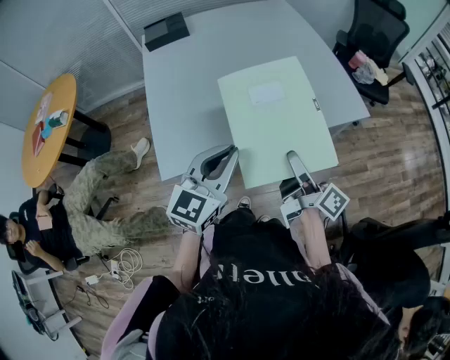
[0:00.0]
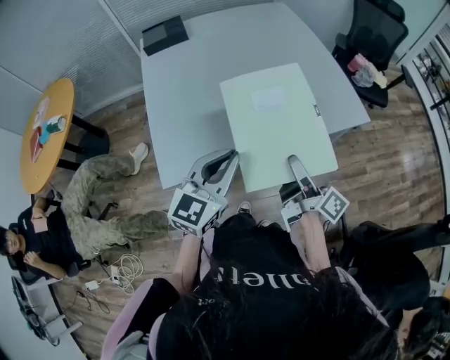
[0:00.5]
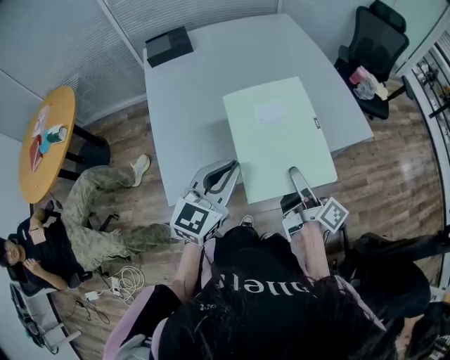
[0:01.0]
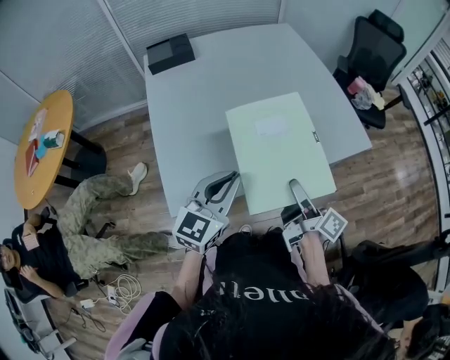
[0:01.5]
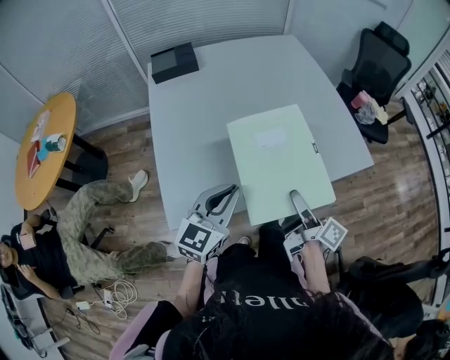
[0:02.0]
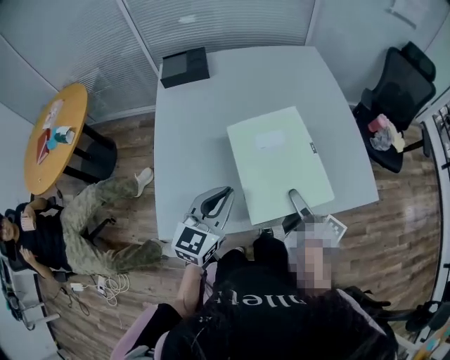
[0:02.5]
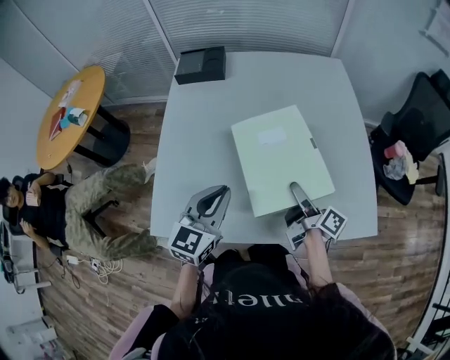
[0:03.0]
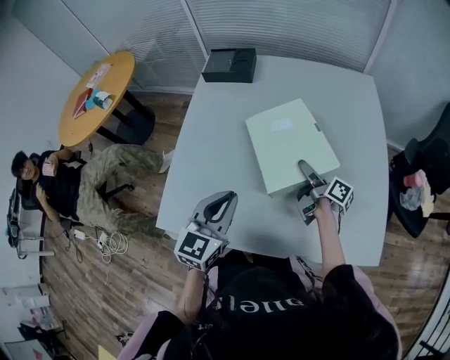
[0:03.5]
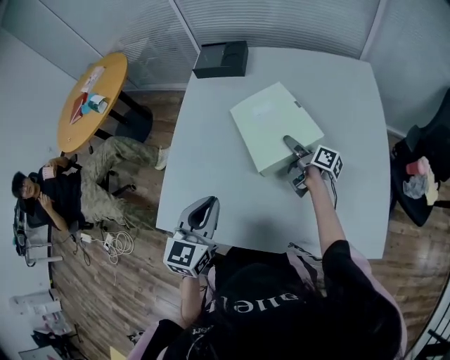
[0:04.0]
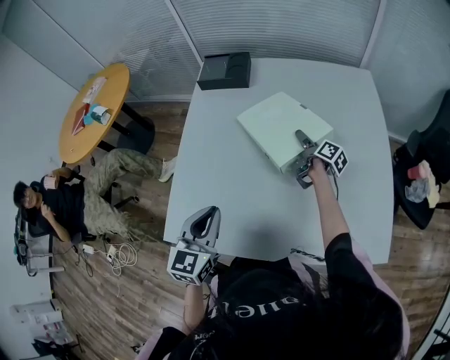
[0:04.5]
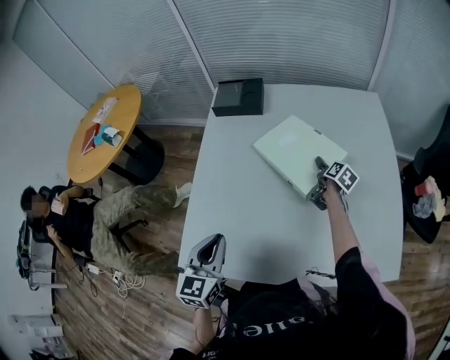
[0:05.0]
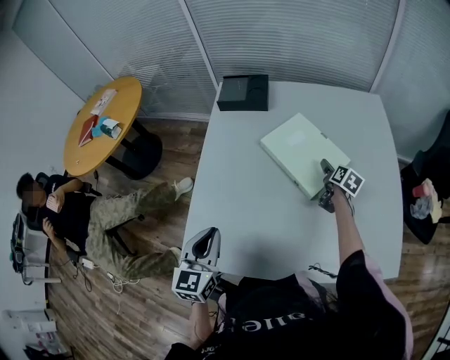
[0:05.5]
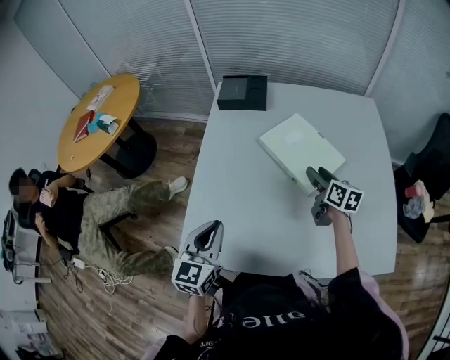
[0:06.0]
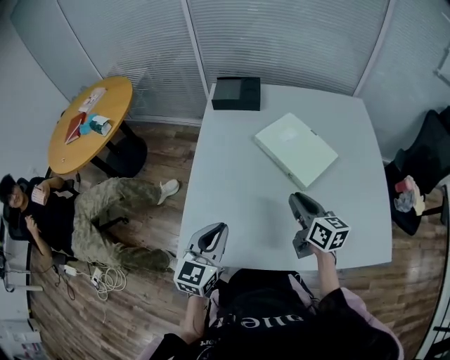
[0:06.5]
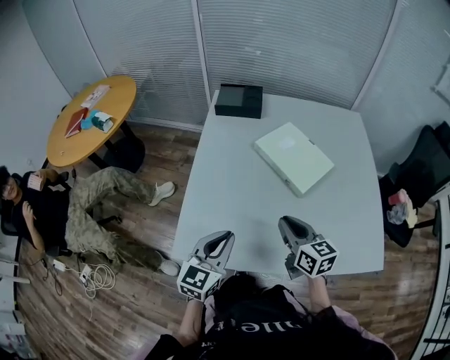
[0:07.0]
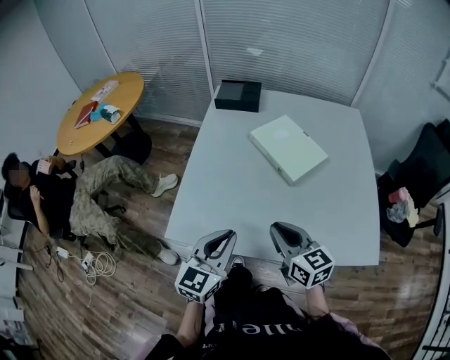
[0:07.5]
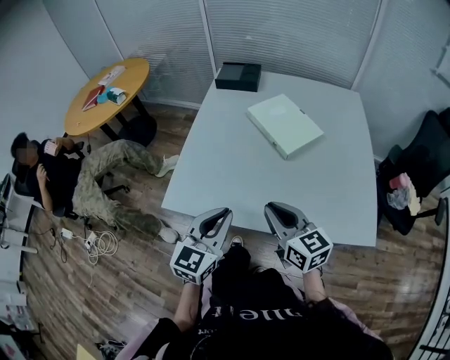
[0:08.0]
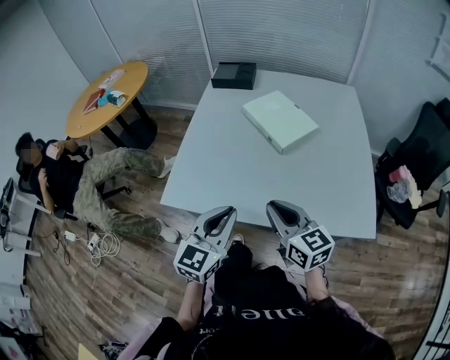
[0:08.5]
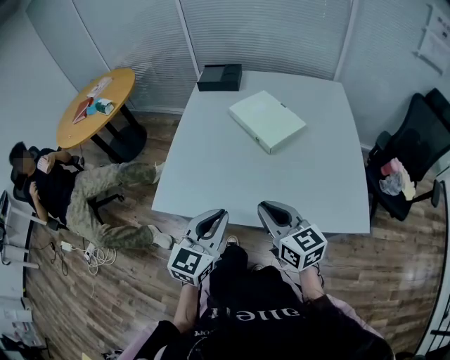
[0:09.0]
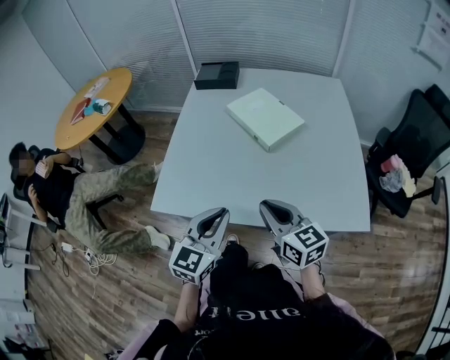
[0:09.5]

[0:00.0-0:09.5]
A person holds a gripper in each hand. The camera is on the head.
0:00.0 to 0:02.0: The right gripper moves forward, some 5 cm. Meanwhile the left gripper heads forward and to the left, covering about 10 cm.
0:02.0 to 0:04.0: The right gripper ends up approximately 40 cm from where it was, and changes its angle by about 30 degrees; the left gripper moves approximately 15 cm, and turns by approximately 40 degrees.
0:04.0 to 0:05.5: The right gripper goes about 10 cm to the right and forward, and swivels some 50 degrees; the left gripper shifts about 10 cm to the left.
0:05.5 to 0:07.5: The left gripper is displaced backward and to the right by about 15 cm, while the right gripper travels backward, to the left and upward by approximately 40 cm, changes its angle by approximately 50 degrees, and closes up.
0:07.5 to 0:09.5: The left gripper heads to the right and backward, covering approximately 10 cm; the right gripper travels backward and to the right by about 10 cm.

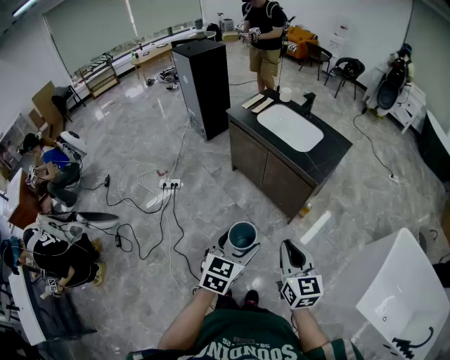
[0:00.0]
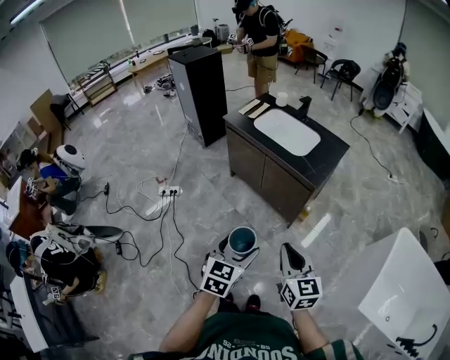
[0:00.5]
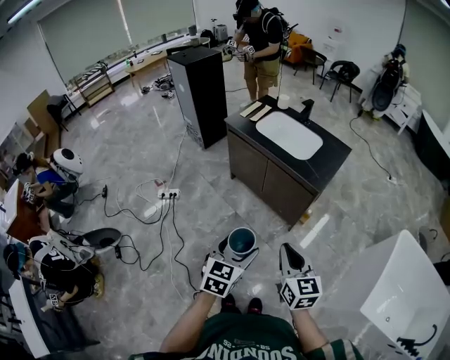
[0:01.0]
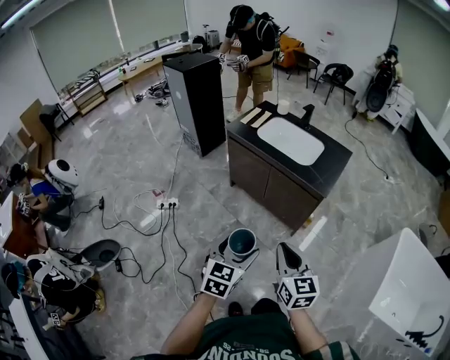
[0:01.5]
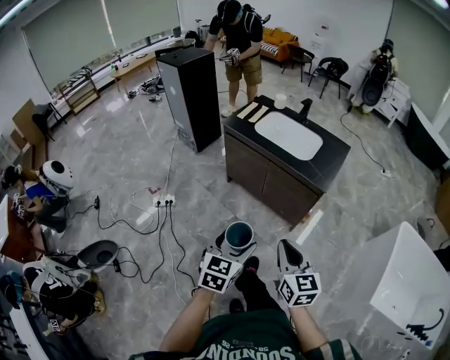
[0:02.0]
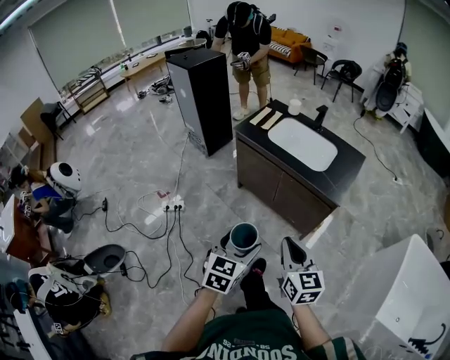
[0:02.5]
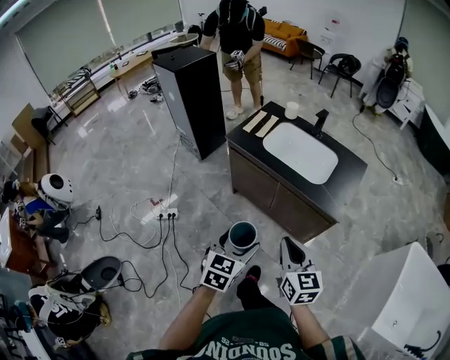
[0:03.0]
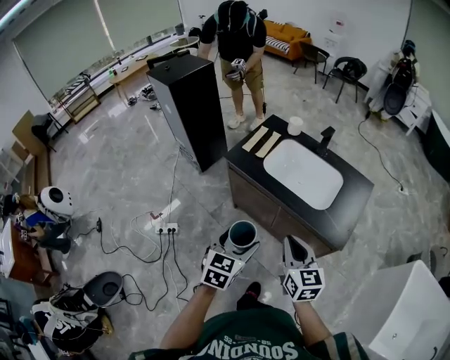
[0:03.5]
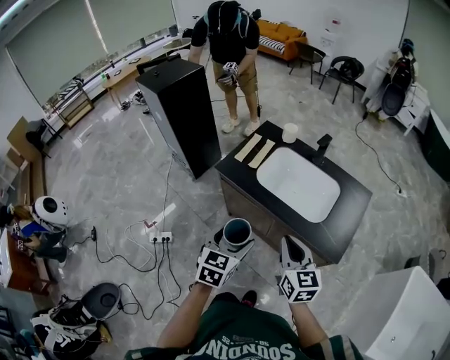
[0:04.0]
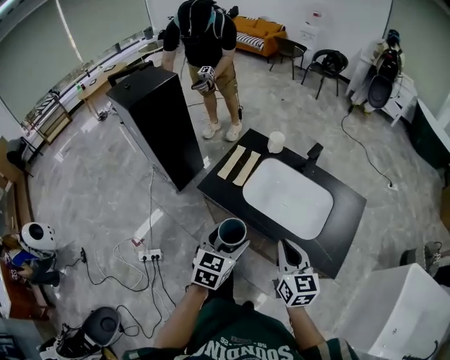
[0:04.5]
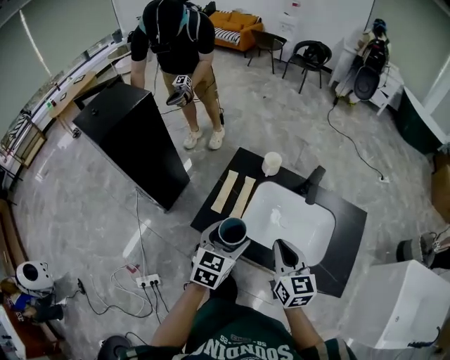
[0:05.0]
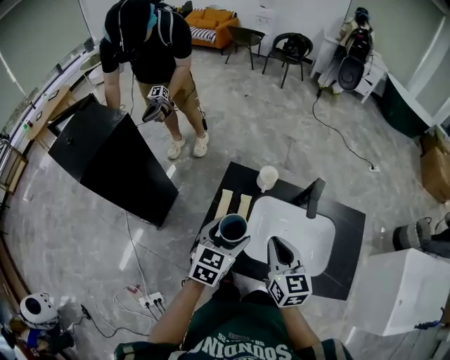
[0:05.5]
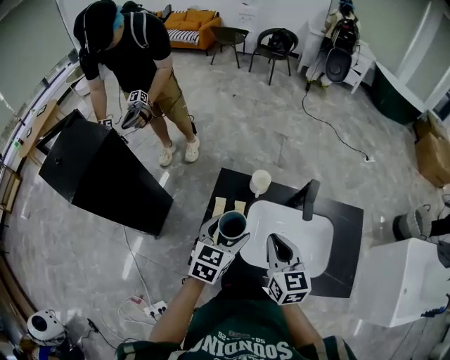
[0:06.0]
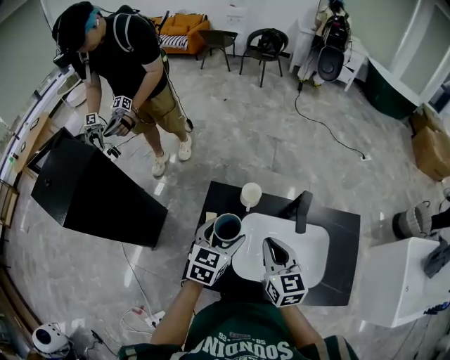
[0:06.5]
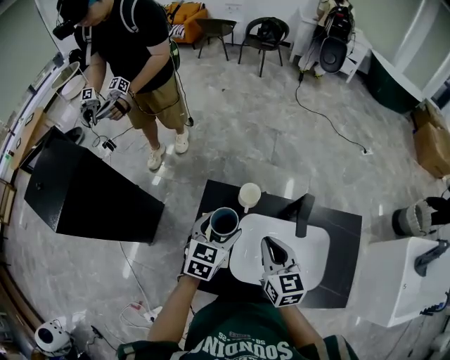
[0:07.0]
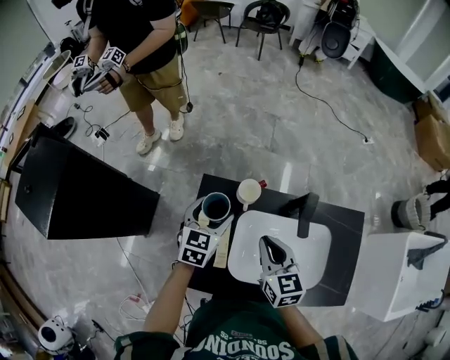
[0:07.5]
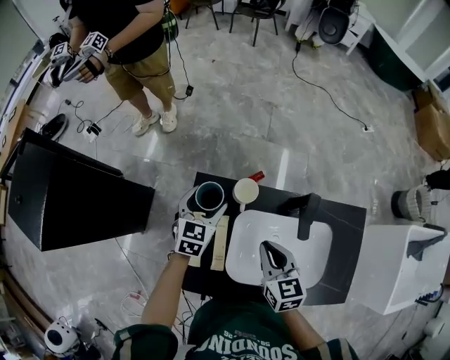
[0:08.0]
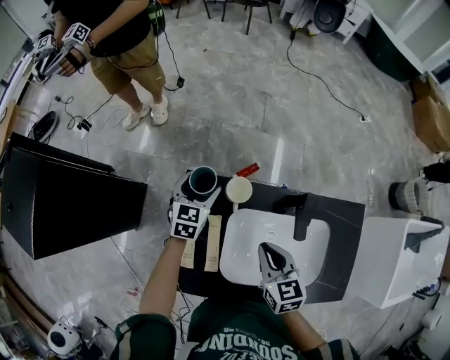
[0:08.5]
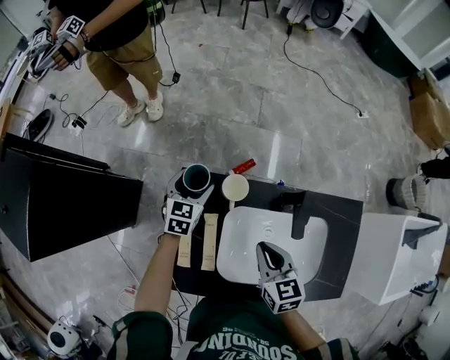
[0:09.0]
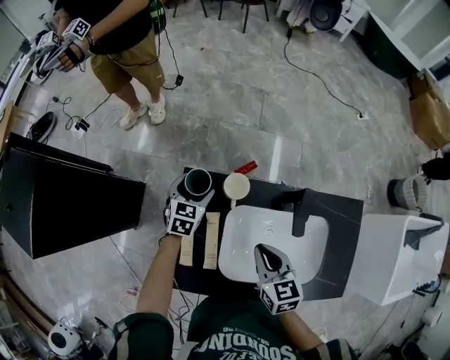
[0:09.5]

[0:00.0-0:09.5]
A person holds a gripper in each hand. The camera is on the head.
0:00.0 to 0:02.0: Both grippers move to the left and forward, about 10 cm.
0:02.0 to 0:04.0: Both grippers are carried forward, approximately 40 cm.
0:04.0 to 0:05.5: The two grippers travel together, forward, some 40 cm. The left gripper rotates roughly 20 degrees.
0:05.5 to 0:07.5: The left gripper moves forward, some 20 cm, while the right gripper moves forward and downward, some 15 cm.
0:07.5 to 0:09.5: The right gripper travels downward by some 5 cm, while the left gripper heads downward and forward, covering roughly 15 cm.

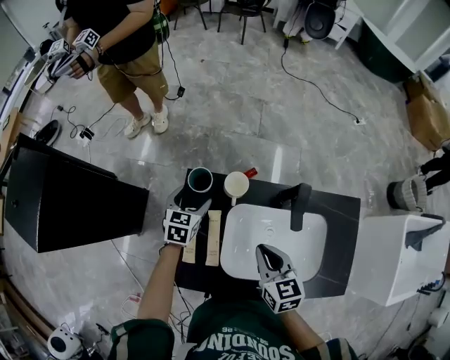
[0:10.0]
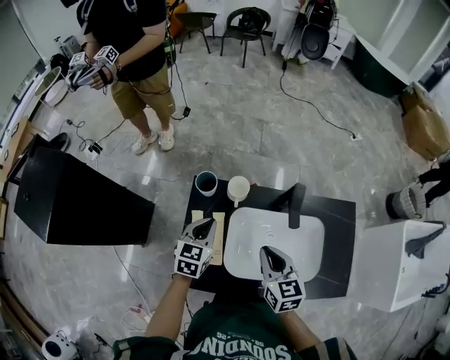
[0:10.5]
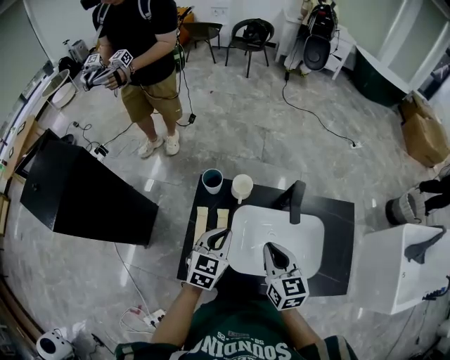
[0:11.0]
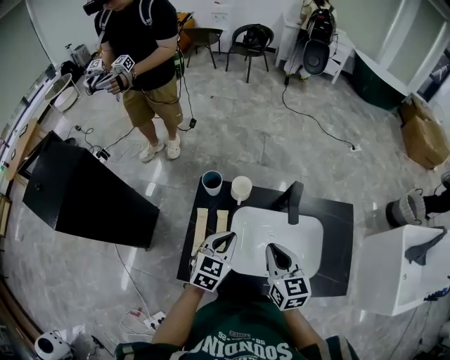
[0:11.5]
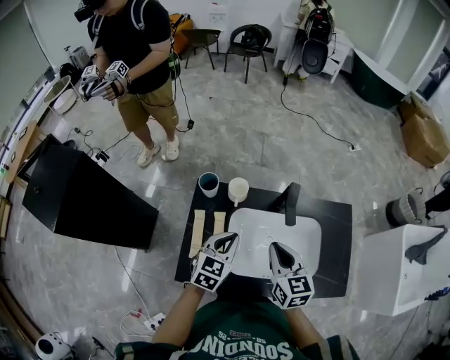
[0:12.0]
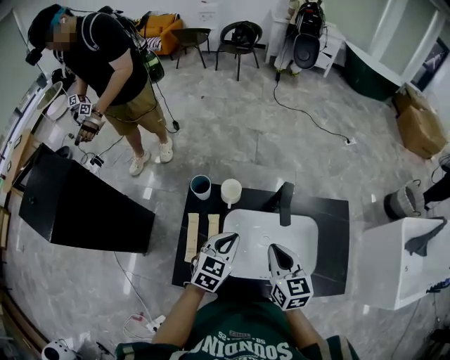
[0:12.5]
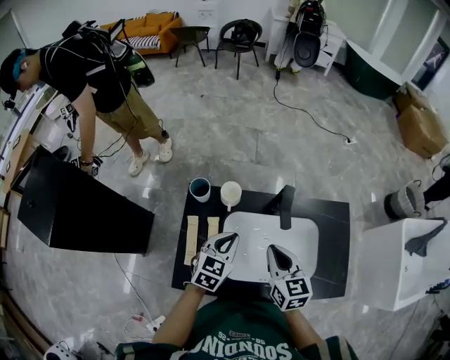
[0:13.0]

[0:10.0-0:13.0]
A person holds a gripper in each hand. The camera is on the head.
0:10.0 to 0:11.5: The left gripper heads backward, upward and to the right, covering approximately 25 cm, and closes up. The right gripper goes some 10 cm upward and backward.
0:11.5 to 0:13.0: The left gripper changes place by about 5 cm.

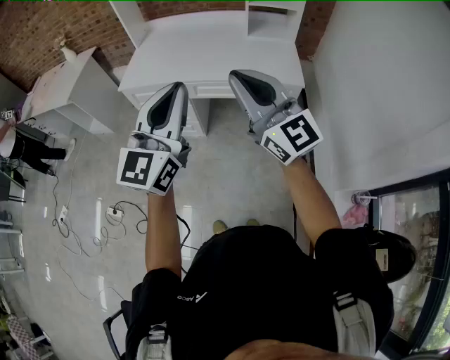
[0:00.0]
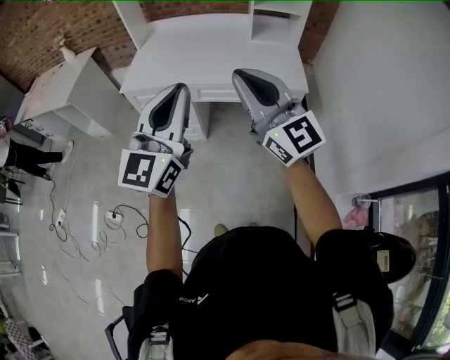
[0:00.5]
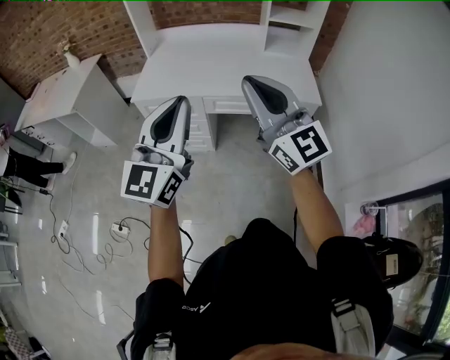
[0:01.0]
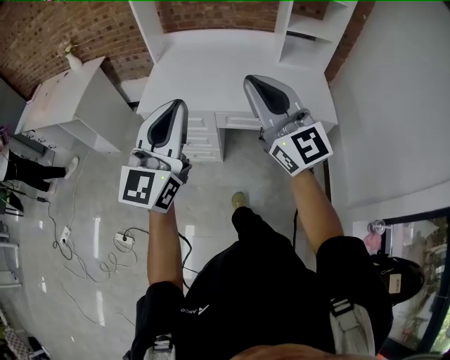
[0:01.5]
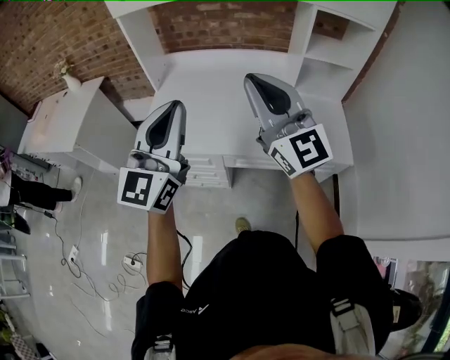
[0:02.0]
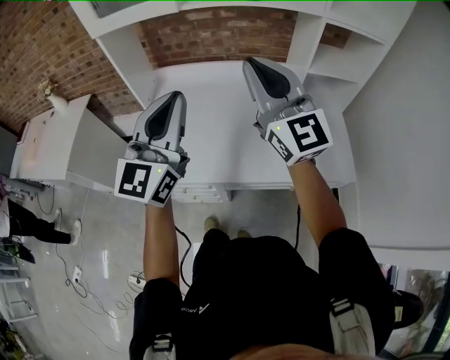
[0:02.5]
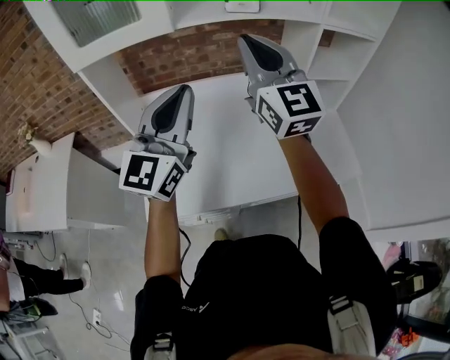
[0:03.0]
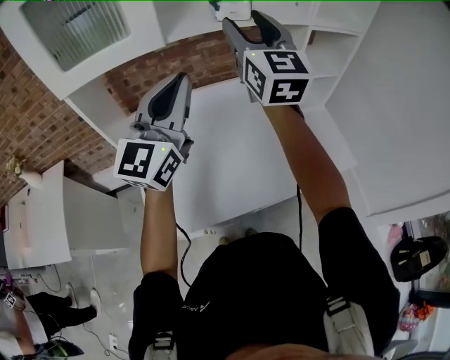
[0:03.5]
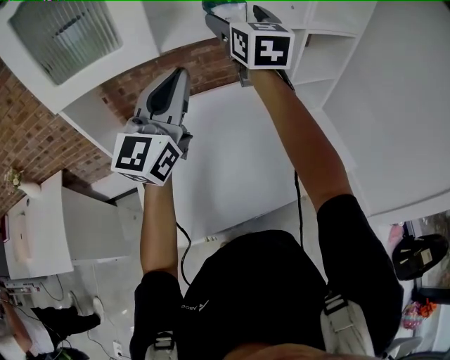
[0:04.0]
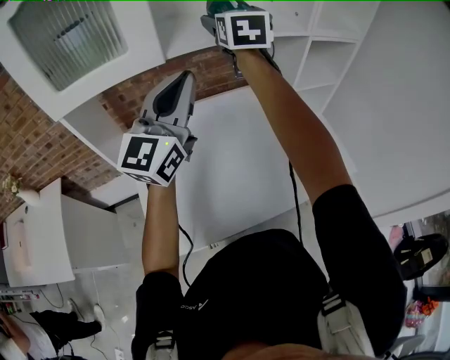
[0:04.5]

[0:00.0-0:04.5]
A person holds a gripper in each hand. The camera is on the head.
0:00.0 to 0:02.0: The two grippers travel together, forward, approximately 40 cm.
0:02.0 to 0:04.5: The right gripper moves approximately 50 cm, rotates about 60 degrees, and opens. Meanwhile the left gripper shifts by some 40 cm, and turns by about 30 degrees.
